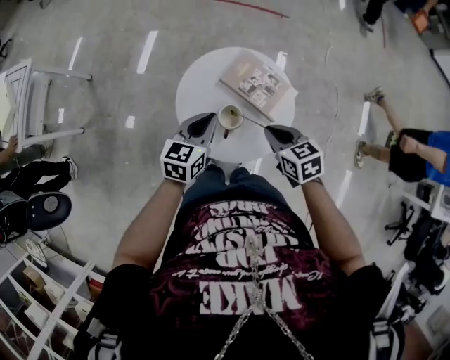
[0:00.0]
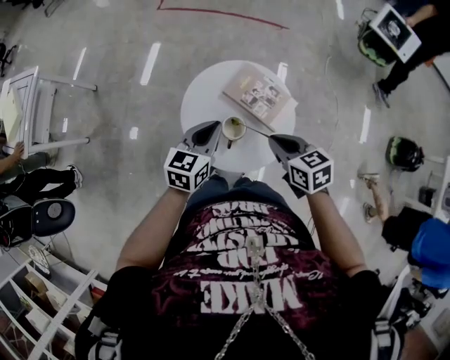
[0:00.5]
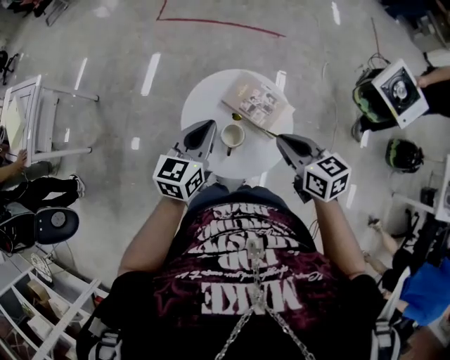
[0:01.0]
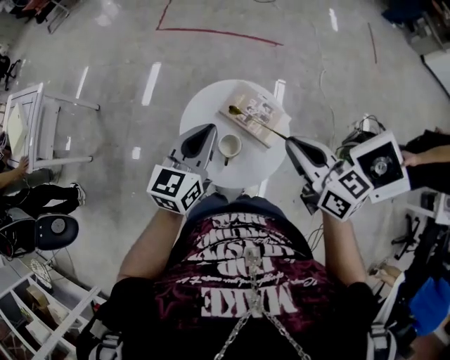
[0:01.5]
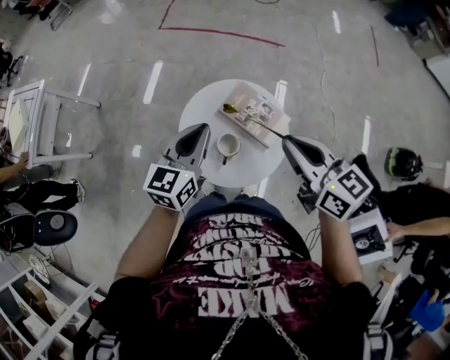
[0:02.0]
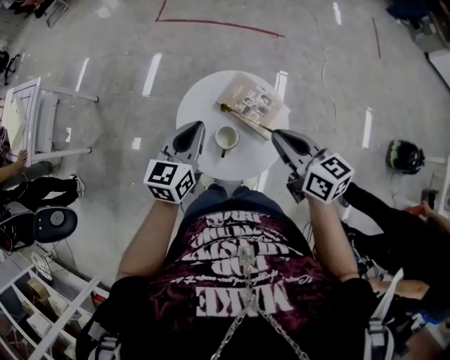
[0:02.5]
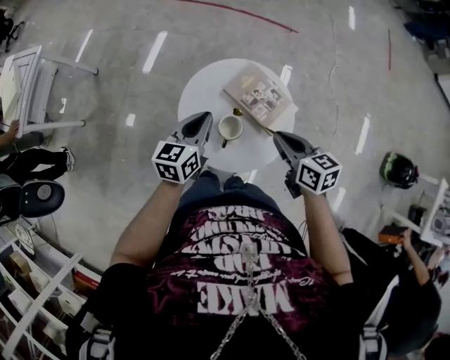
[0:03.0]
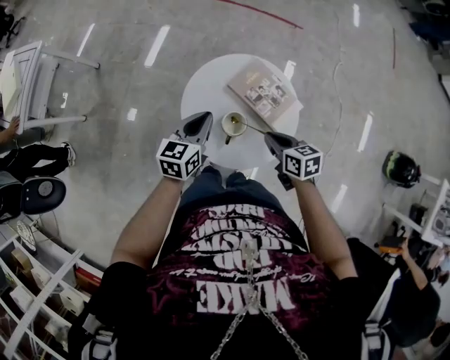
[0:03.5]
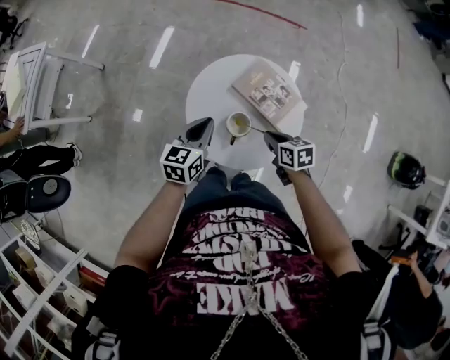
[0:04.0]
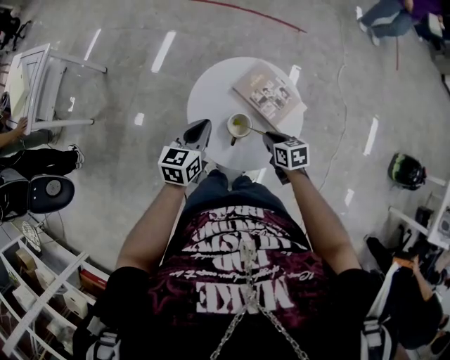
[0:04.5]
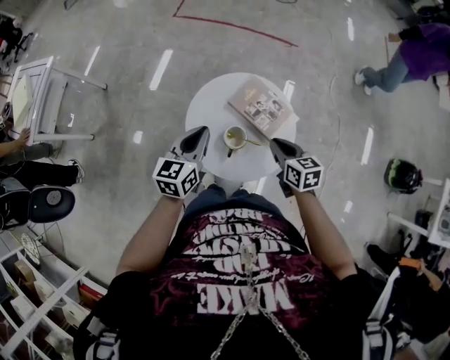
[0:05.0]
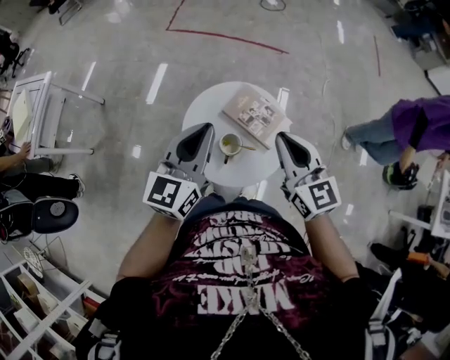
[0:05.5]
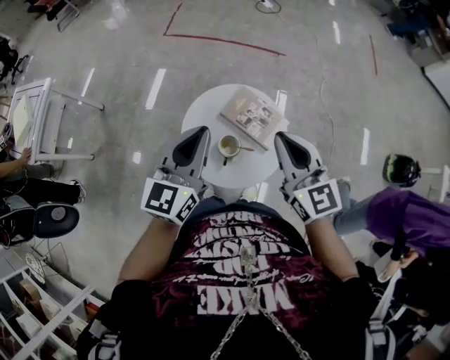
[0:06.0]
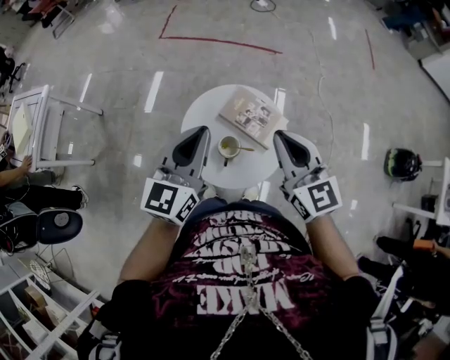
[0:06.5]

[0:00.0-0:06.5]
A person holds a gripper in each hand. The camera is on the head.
0:00.0 to 0:02.0: The left gripper is displaced upward by about 15 cm. The right gripper goes some 25 cm upward, and rotates roughly 30 degrees.
0:02.0 to 0:04.5: The left gripper travels downward by some 15 cm; the right gripper is displaced downward by approximately 35 cm, and angles its fingers downward, by some 30 degrees.
0:04.5 to 0:06.5: Both grippers move upward, roughly 30 cm. The right gripper angles its fingers upward, by approximately 40 degrees; the left gripper changes its angle by about 30 degrees.

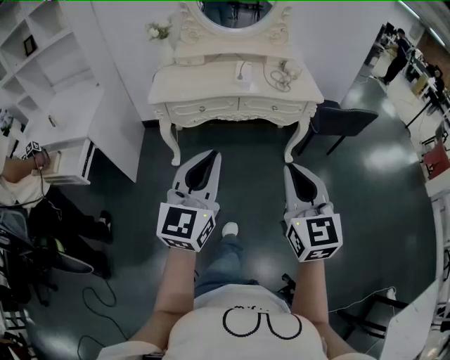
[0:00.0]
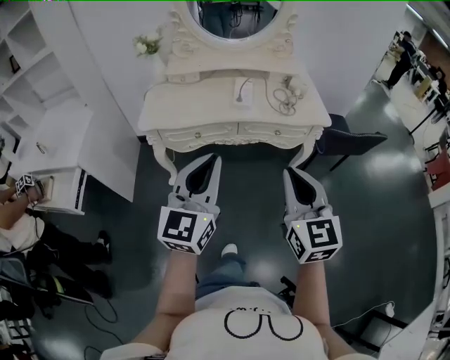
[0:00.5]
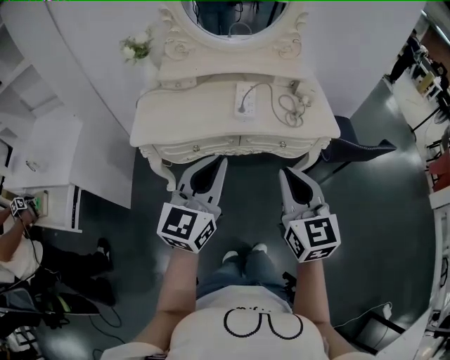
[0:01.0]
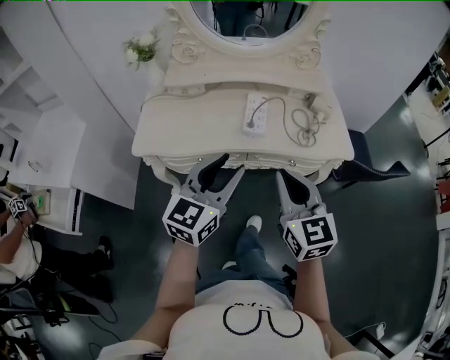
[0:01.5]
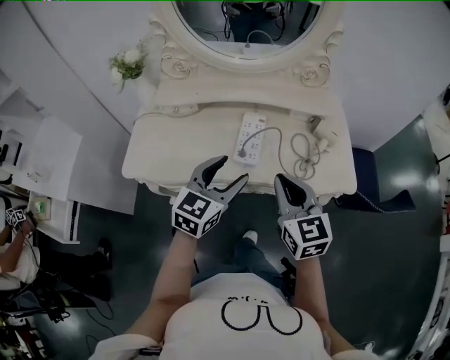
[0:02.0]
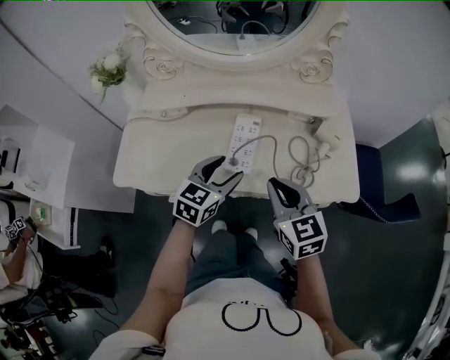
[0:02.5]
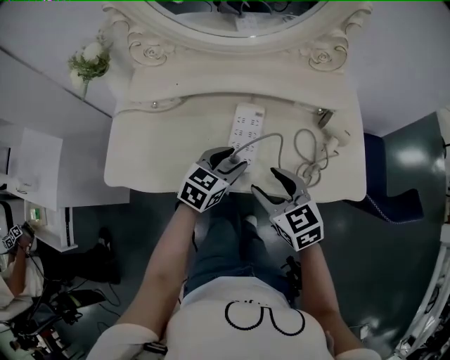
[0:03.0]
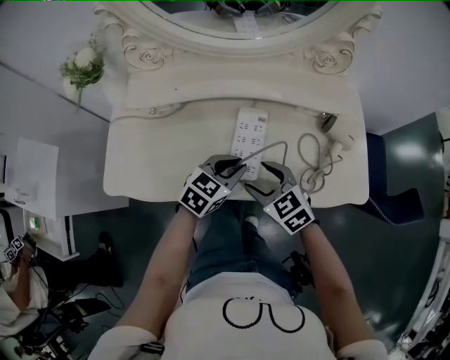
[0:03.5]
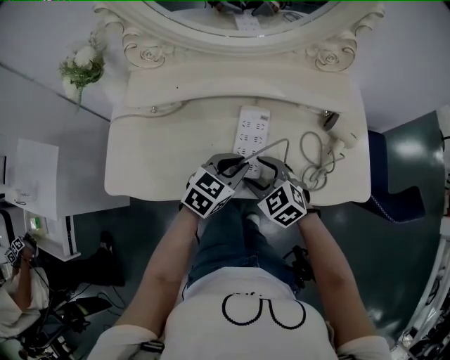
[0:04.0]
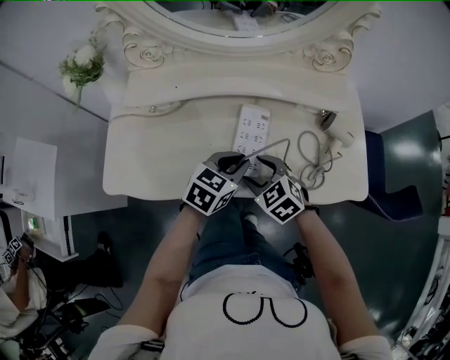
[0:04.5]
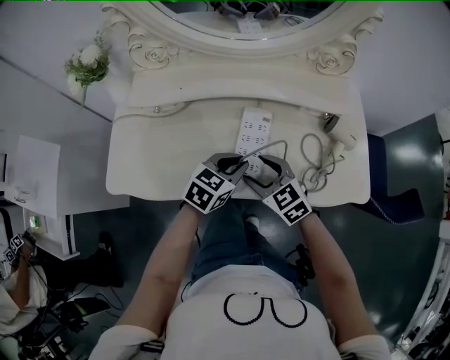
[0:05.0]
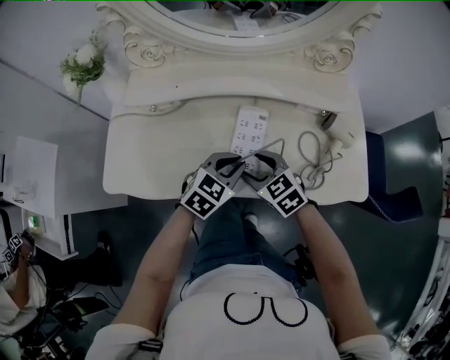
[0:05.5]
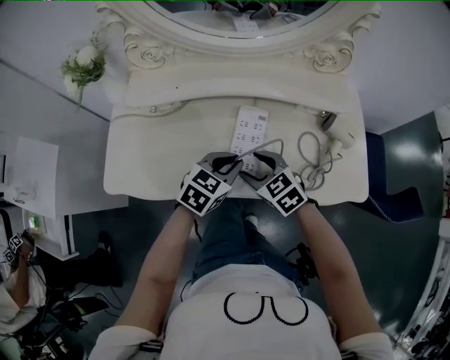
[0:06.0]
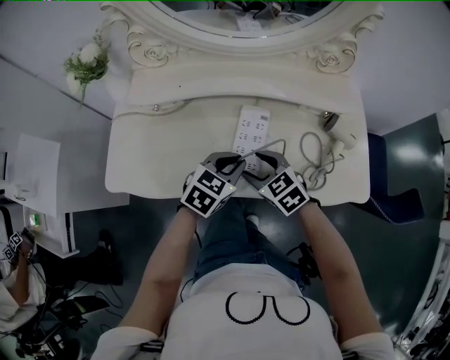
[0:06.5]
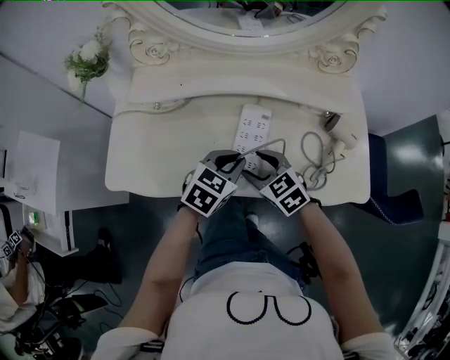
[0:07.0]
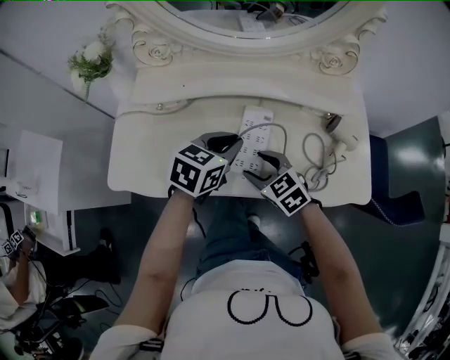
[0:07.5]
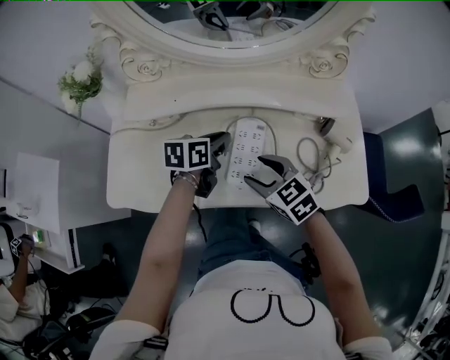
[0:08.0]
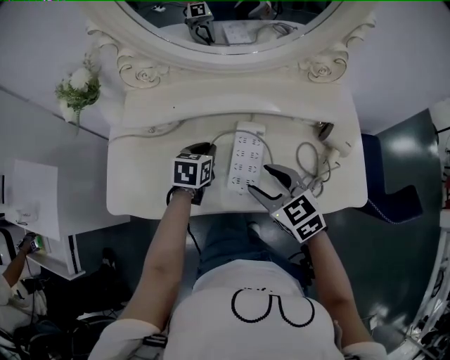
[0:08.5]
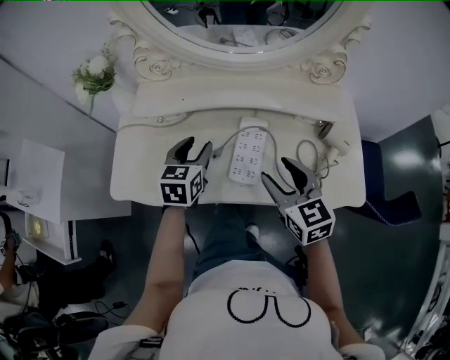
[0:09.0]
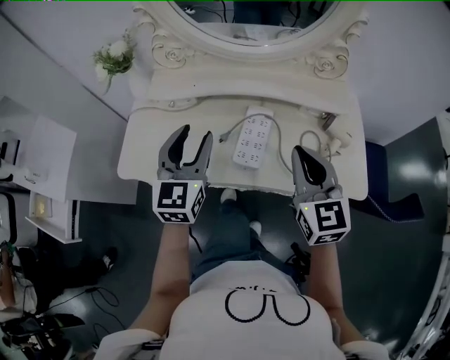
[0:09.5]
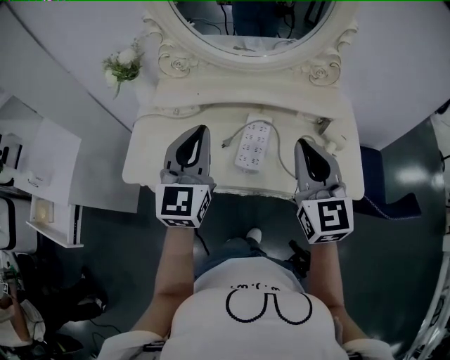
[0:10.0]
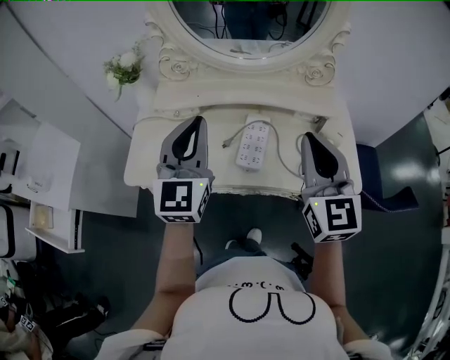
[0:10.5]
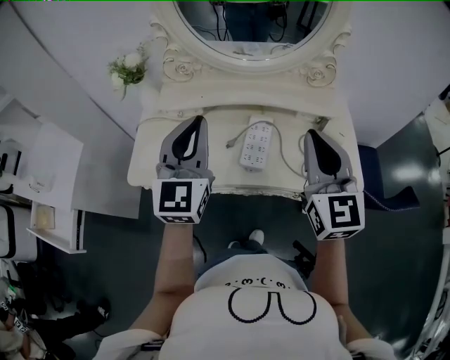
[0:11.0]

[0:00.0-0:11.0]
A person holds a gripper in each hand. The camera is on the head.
0:00.0 to 0:02.0: Both grippers are carried forward, approximately 60 cm. The left gripper rotates roughly 20 degrees, and opens its fingers.
0:02.0 to 0:03.5: Both grippers travel together downward and forward, some 20 cm. The left gripper turns by roughly 30 degrees, and closes; the right gripper swivels roughly 30 degrees, and opens its fingers.
0:03.5 to 0:05.5: The grippers make only small movements.
0:05.5 to 0:07.5: The left gripper heads upward, covering approximately 5 cm.
0:07.5 to 0:09.0: The left gripper moves to the left, some 10 cm, moves about 10 cm downward and comes back, changes its angle by some 30 degrees, and opens. Meanwhile the right gripper heads upward and to the right, covering approximately 15 cm, and swivels roughly 30 degrees.
0:09.0 to 0:11.0: The left gripper goes approximately 25 cm upward and backward, tips its fingers upward by approximately 30 degrees, and closes its fingers; the right gripper moves upward, some 20 cm, rotates approximately 30 degrees, and closes.

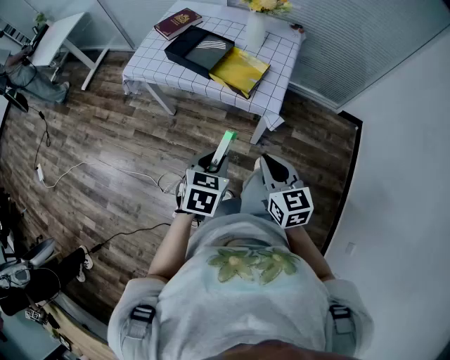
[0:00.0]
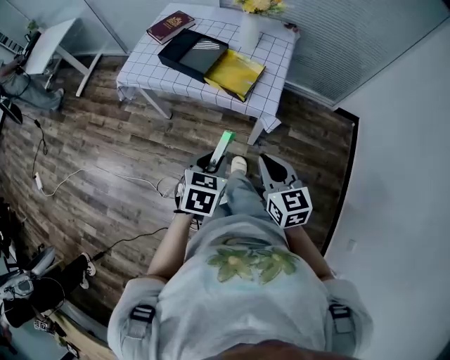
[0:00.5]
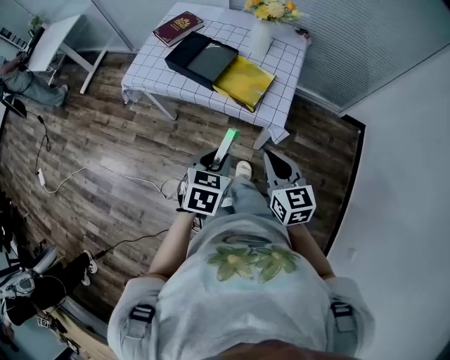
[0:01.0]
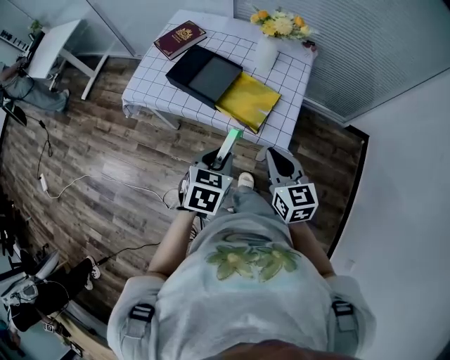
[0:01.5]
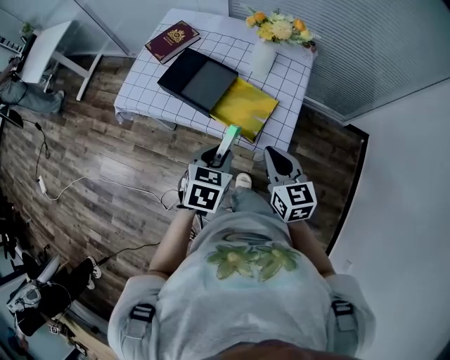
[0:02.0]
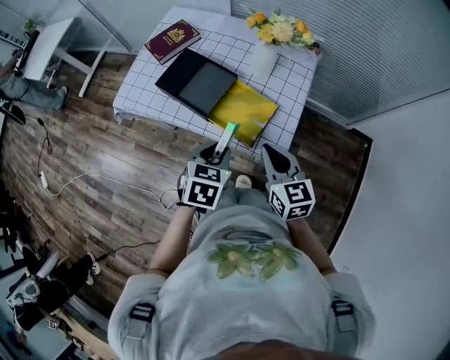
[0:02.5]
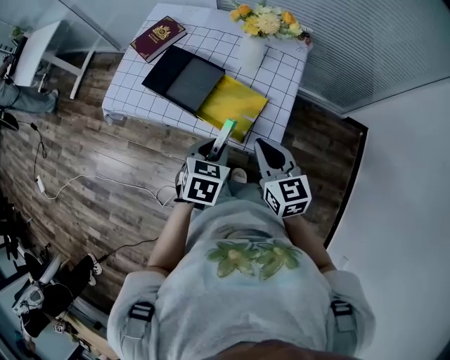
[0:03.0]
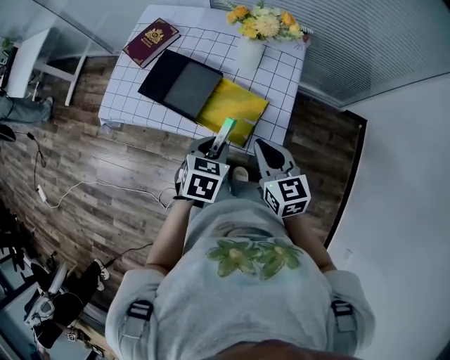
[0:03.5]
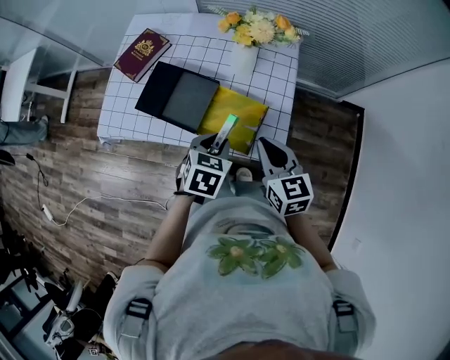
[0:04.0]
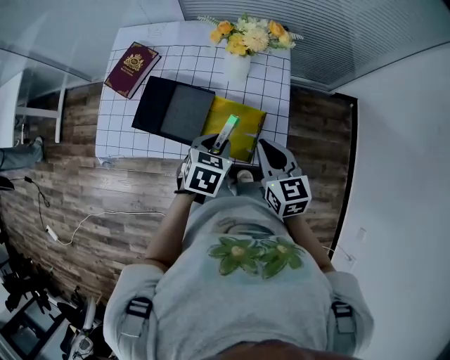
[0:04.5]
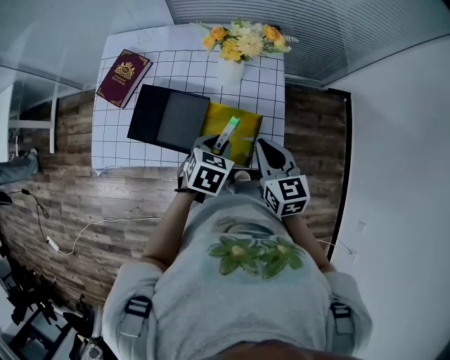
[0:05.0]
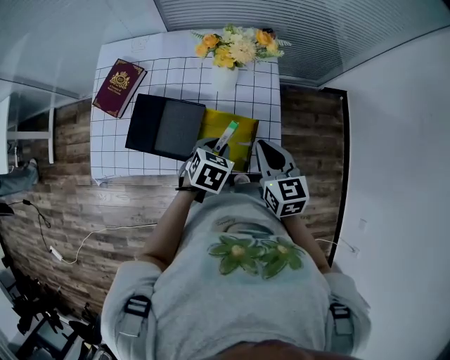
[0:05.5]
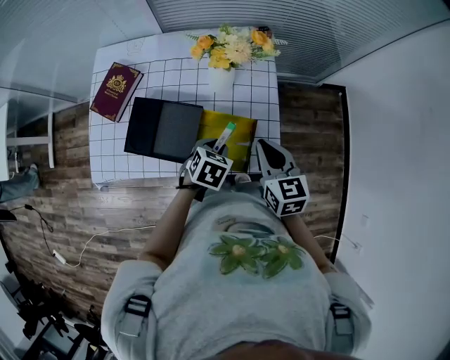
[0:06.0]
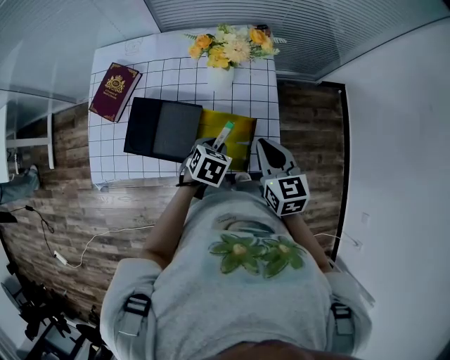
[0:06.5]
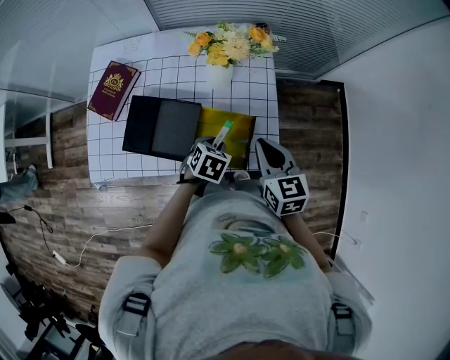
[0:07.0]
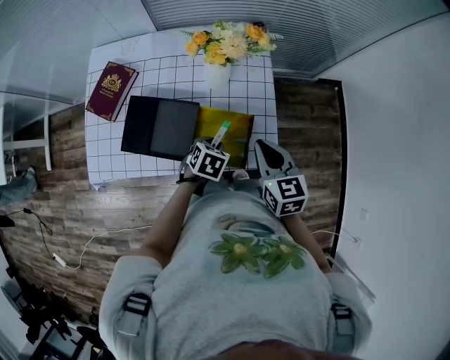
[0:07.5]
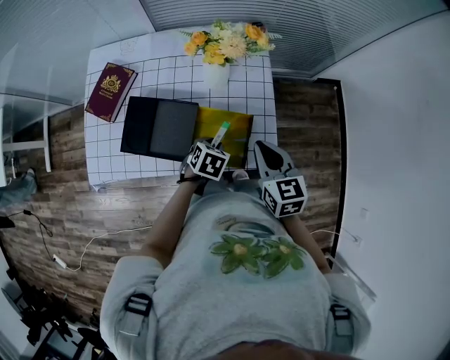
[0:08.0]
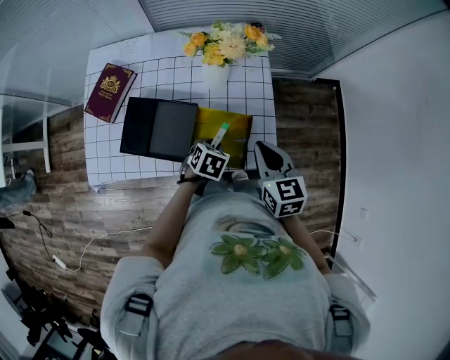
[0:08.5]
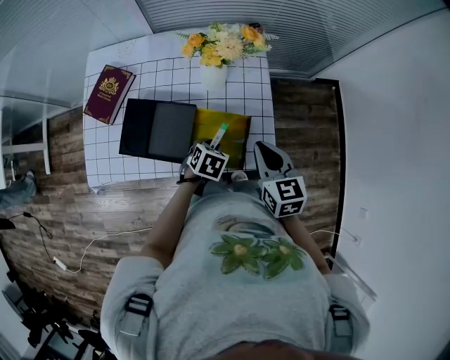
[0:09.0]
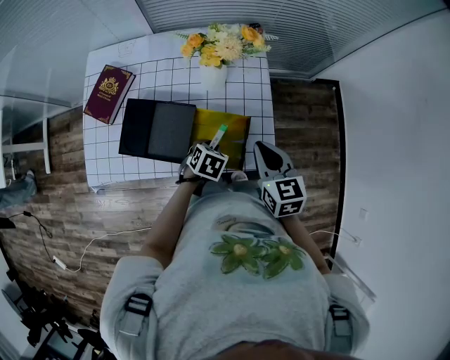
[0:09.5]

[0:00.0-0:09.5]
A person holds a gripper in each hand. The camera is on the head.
0:00.0 to 0:02.0: The grippers both shift forward by some 25 cm.
0:02.0 to 0:04.0: Both grippers move forward, some 10 cm.
0:04.0 to 0:05.5: Both grippers travel together forward, approximately 5 cm.
0:05.5 to 0:07.5: The left gripper moves downward, approximately 5 cm.
0:07.5 to 0:09.5: The grippers stay close to where they were, moving slightly.
